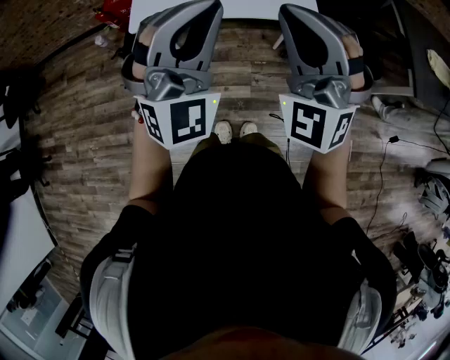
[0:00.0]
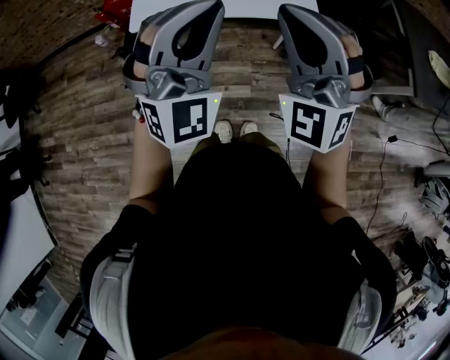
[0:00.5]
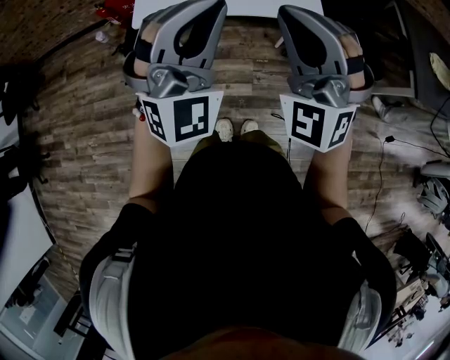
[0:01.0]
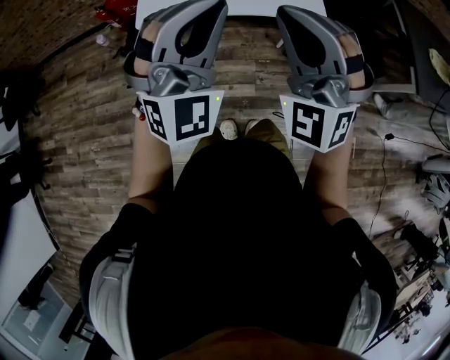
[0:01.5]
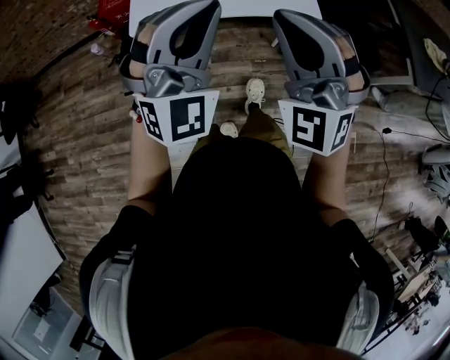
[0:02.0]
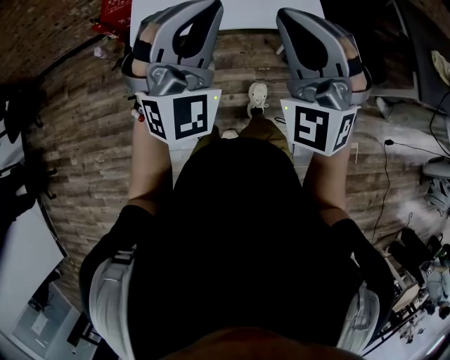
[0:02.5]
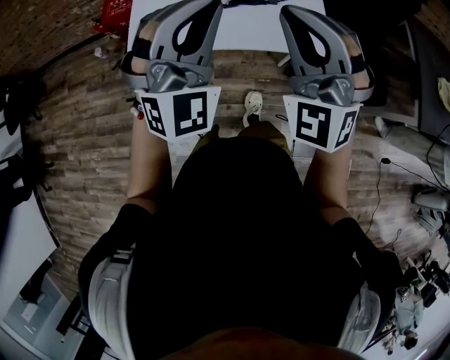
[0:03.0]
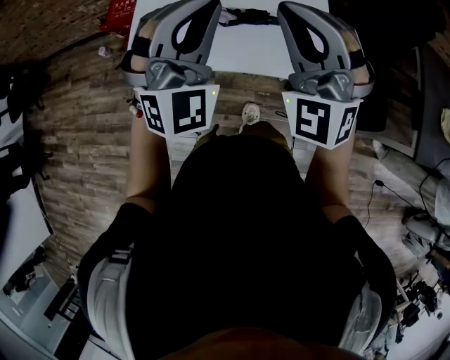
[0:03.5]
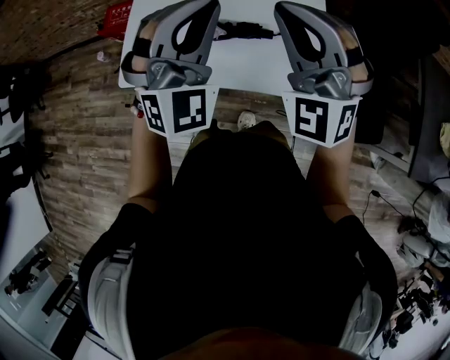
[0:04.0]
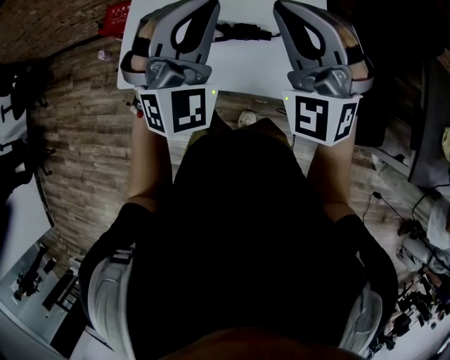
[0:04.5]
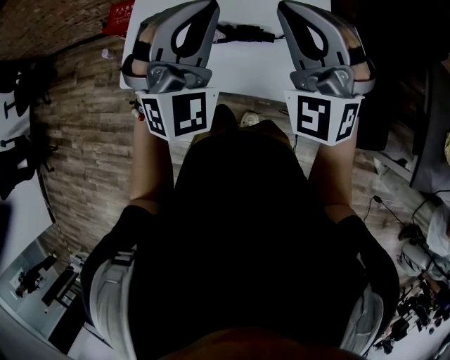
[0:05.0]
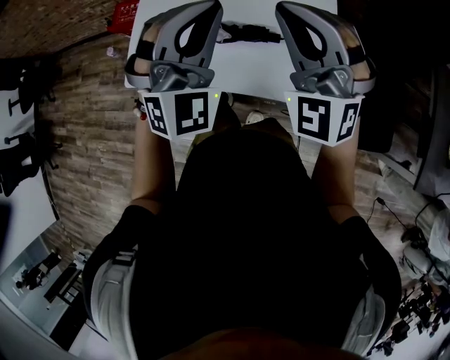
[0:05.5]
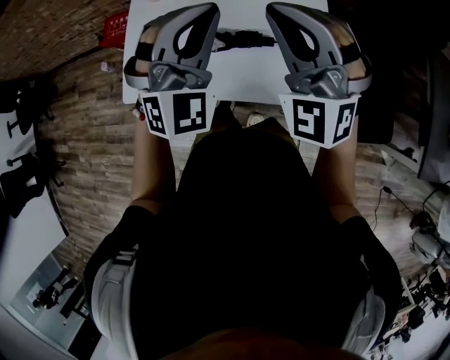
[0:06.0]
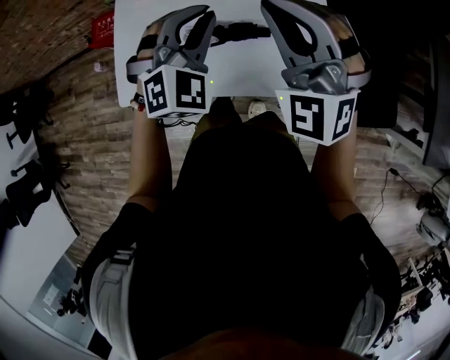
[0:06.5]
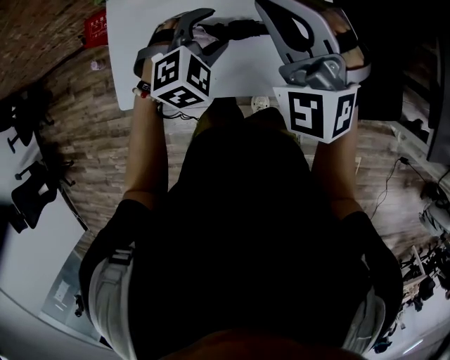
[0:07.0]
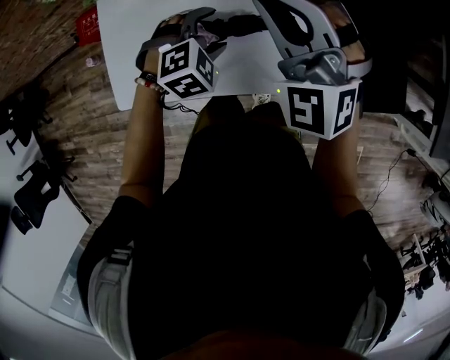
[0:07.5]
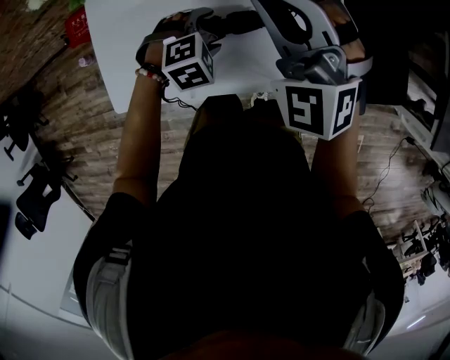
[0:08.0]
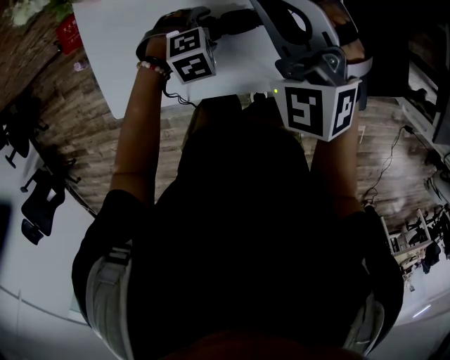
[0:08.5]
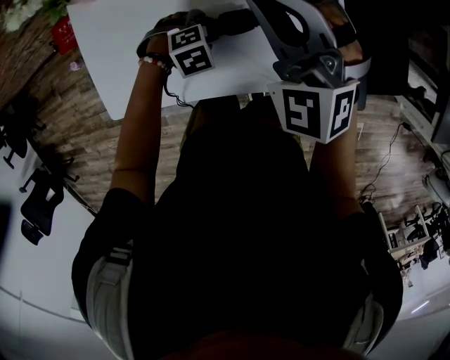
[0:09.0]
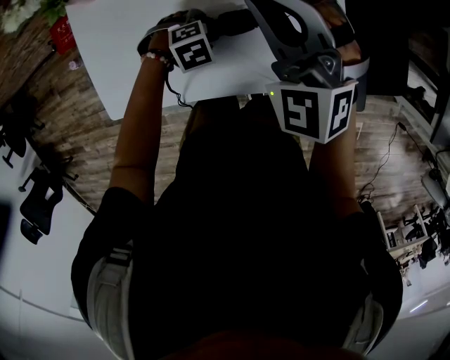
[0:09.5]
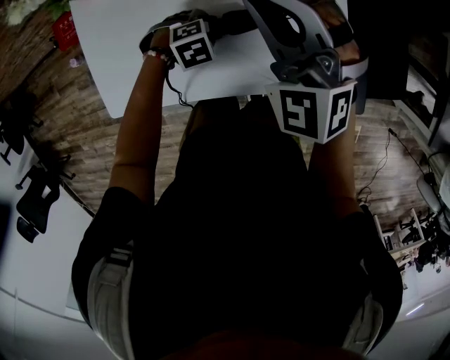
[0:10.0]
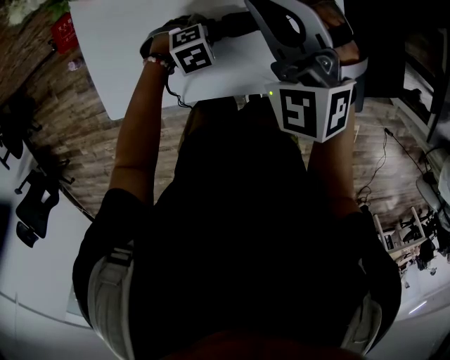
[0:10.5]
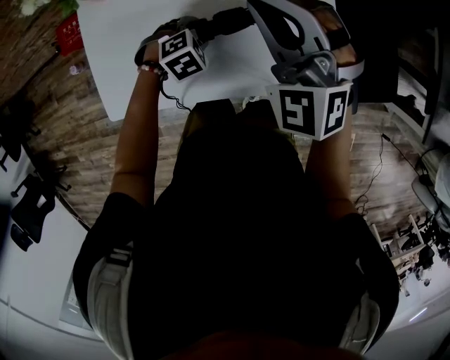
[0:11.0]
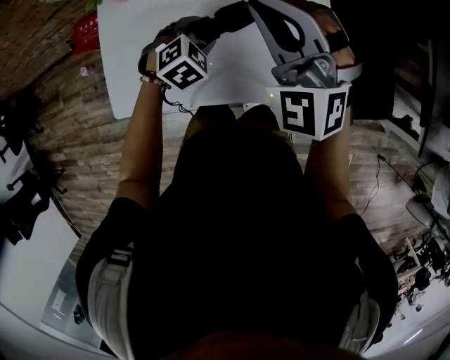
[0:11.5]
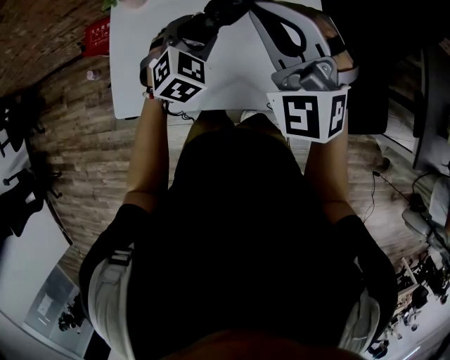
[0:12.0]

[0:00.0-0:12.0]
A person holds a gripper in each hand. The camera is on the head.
0:00.0 to 0:02.0: The right gripper ends up about 5 cm from where it was.
0:02.0 to 0:04.0: The two grippers go roughly 35 cm forward.
0:04.0 to 0:06.0: The left gripper changes place by some 5 cm.
0:06.0 to 0:08.0: The left gripper is displaced downward by approximately 30 cm, tips its fingers downward by approximately 60 degrees, and opens, while the right gripper moves downward and forward, approximately 15 cm.
0:08.0 to 0:10.0: The left gripper shifts approximately 10 cm downward.
0:10.0 to 0:12.0: The left gripper travels upward by roughly 25 cm, and tips its fingers upward by approximately 40 degrees. Meanwhile the right gripper goes approximately 10 cm upward.

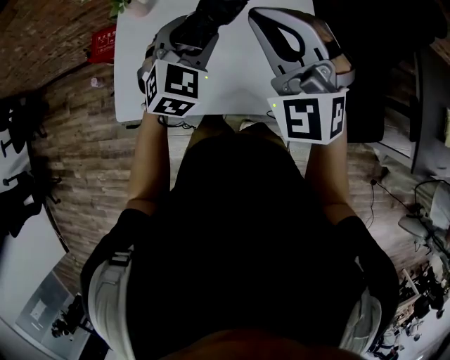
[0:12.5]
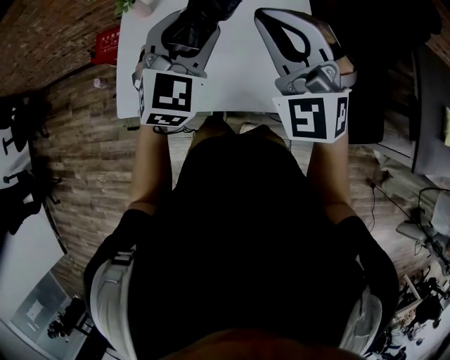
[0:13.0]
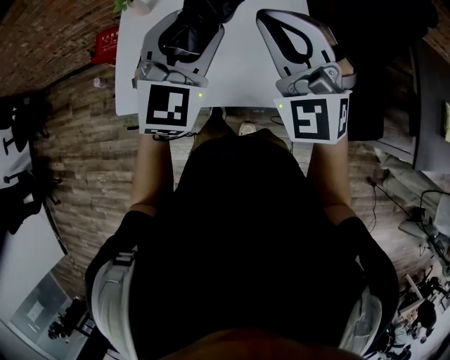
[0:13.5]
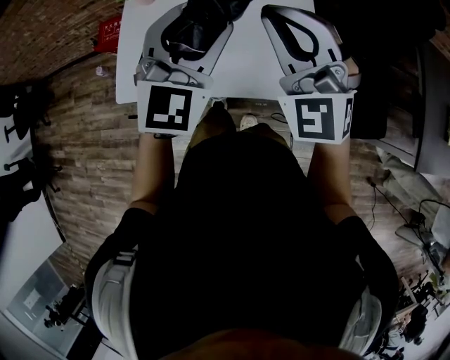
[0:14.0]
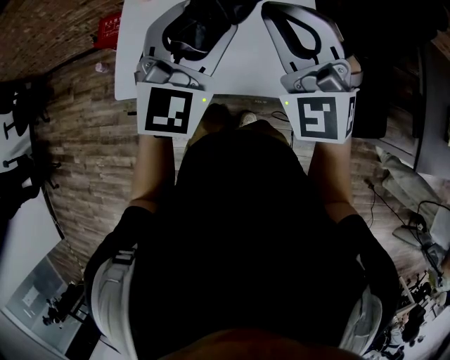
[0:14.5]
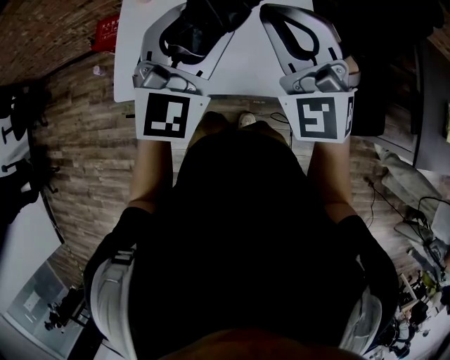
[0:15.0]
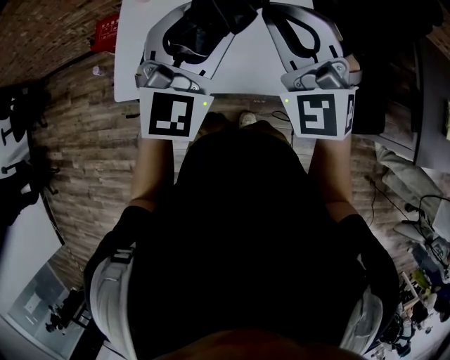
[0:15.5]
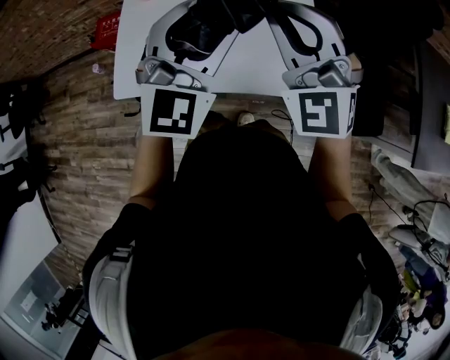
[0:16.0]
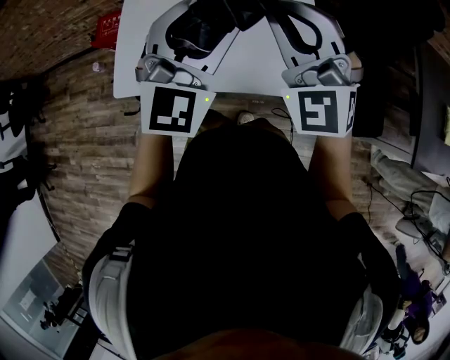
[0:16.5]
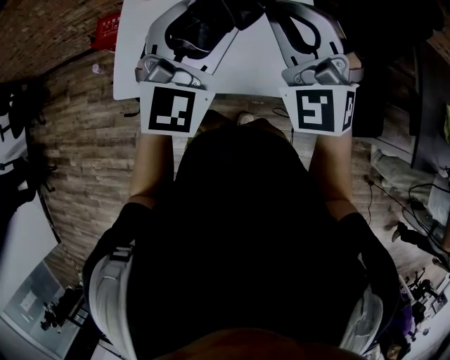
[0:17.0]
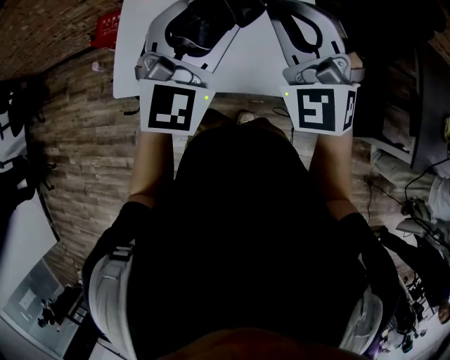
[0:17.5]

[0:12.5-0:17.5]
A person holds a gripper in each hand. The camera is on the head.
0:12.5 to 0:15.0: The left gripper heads upward and backward, covering approximately 15 cm, and changes its angle by some 20 degrees. Meanwhile the right gripper shifts about 5 cm backward.
0:15.0 to 0:17.5: The grippers make only small movements.

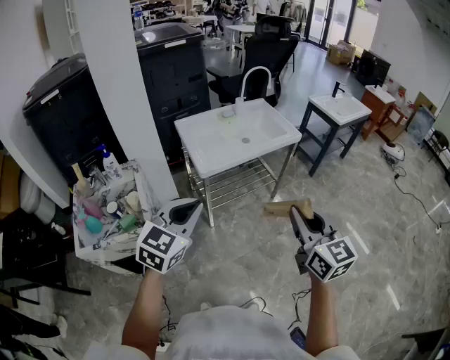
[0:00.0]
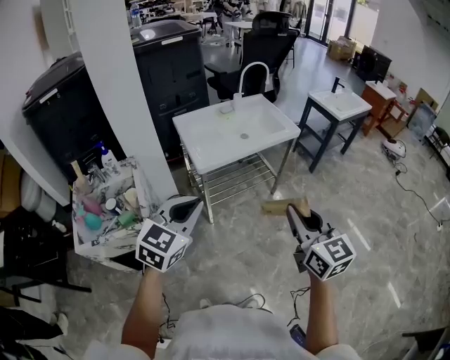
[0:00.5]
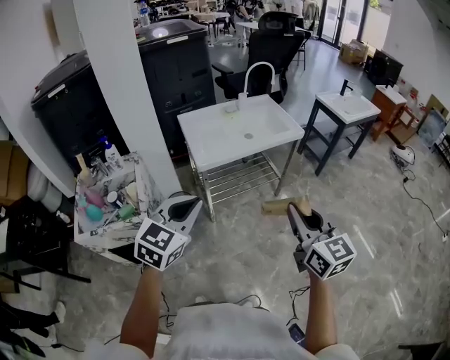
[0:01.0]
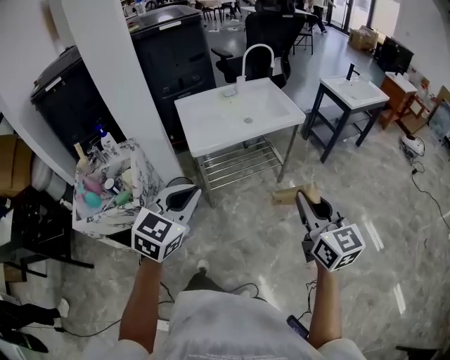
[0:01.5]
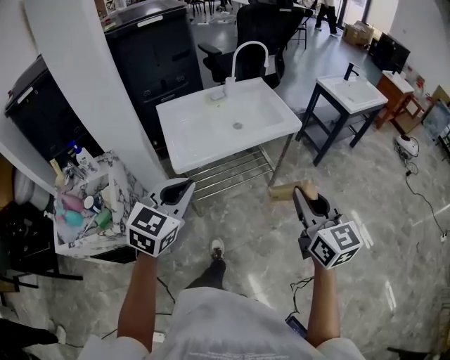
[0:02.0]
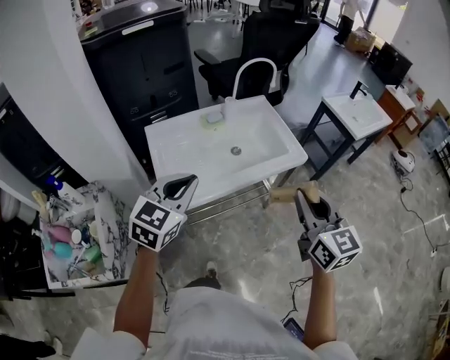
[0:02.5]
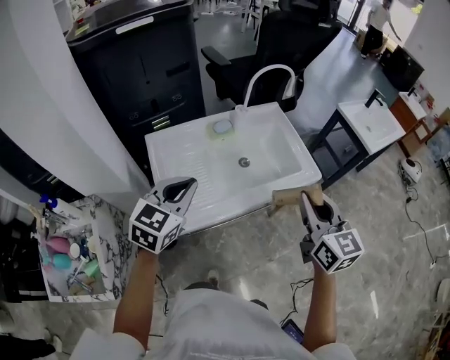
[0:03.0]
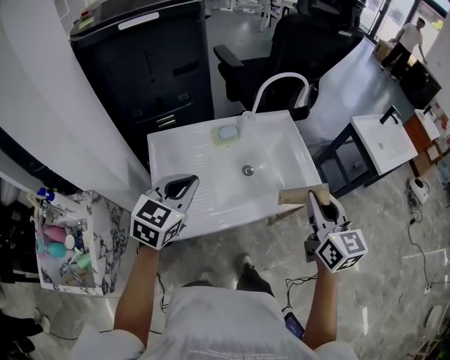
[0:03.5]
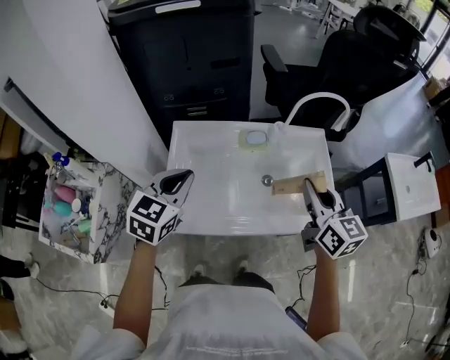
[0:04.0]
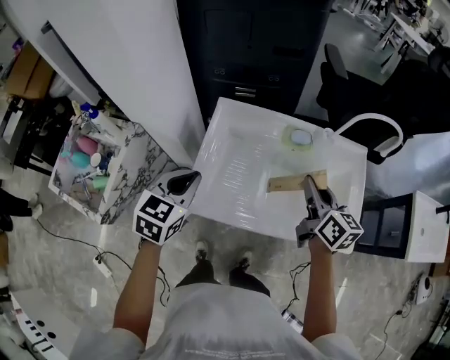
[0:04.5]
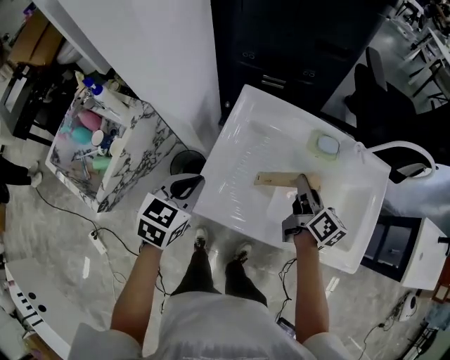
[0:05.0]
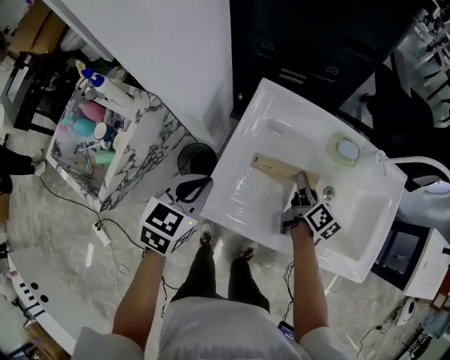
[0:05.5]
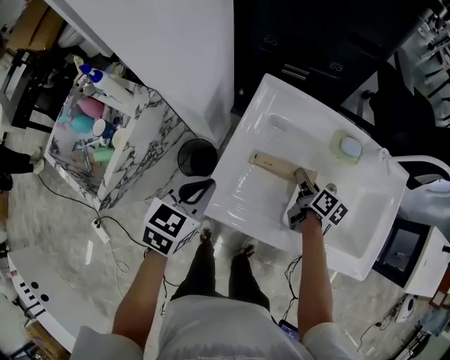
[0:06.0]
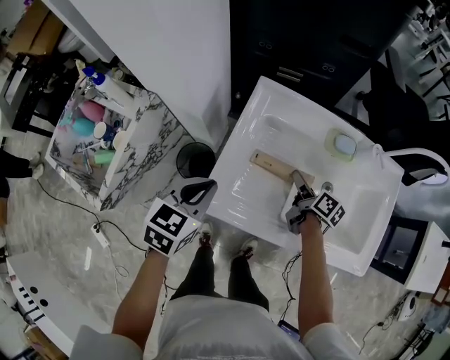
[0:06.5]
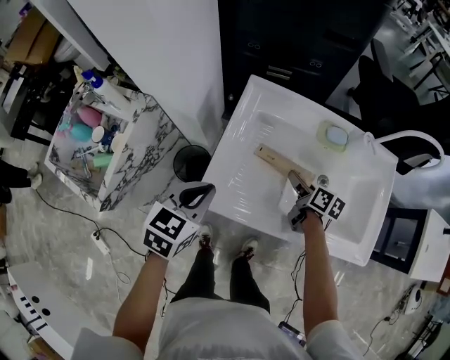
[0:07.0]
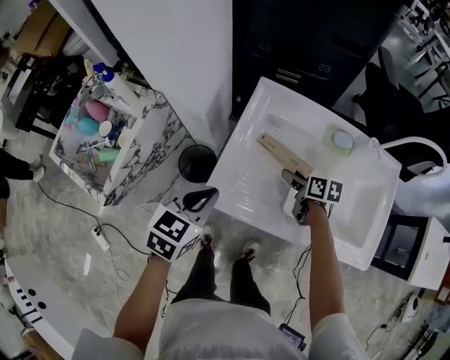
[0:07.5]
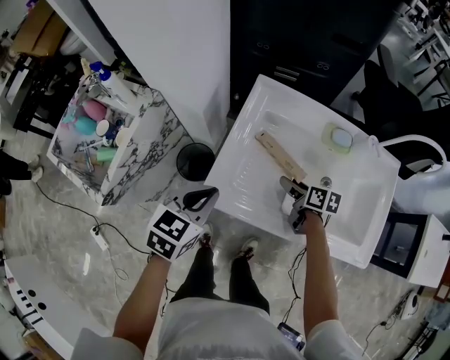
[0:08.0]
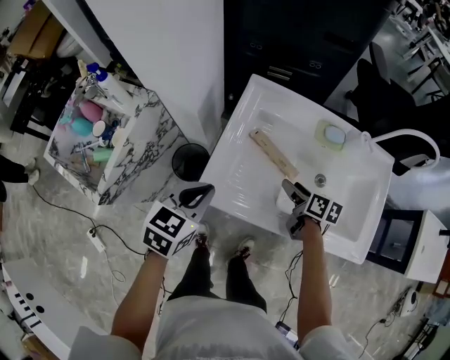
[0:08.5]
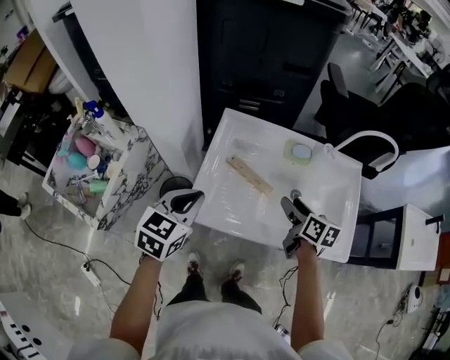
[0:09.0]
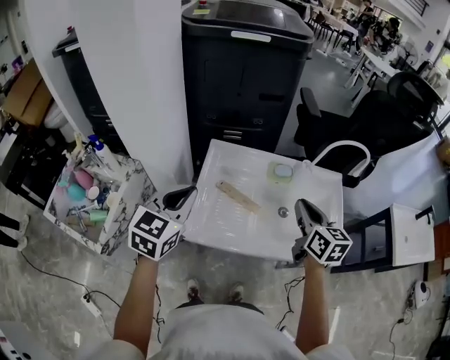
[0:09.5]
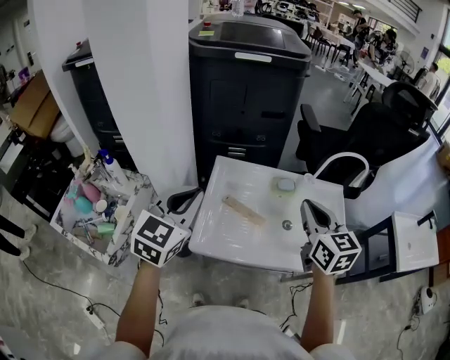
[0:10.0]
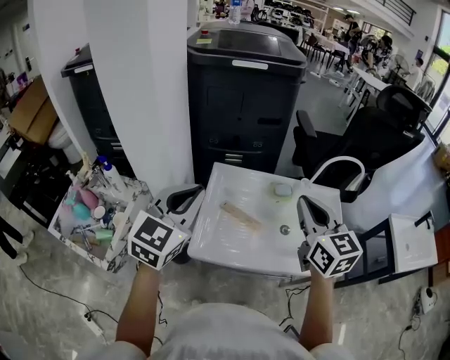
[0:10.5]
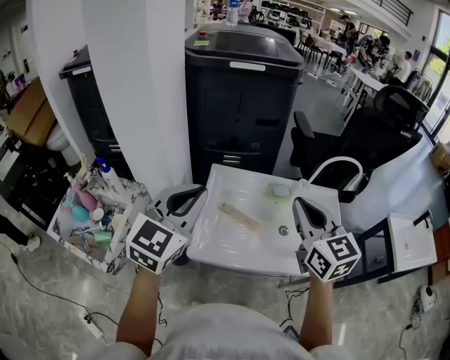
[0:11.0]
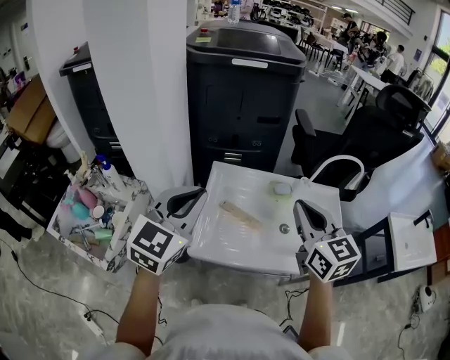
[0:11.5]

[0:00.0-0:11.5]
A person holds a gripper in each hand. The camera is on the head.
0:00.0 to 0:02.0: The grippers both shift forward and to the right by approximately 20 cm.
0:02.0 to 0:04.0: The two grippers travel together, forward, approximately 50 cm. The left gripper rotates approximately 30 degrees; the right gripper swivels some 20 degrees.
0:04.0 to 0:06.0: The right gripper moves downward, to the left and forward, about 40 cm, and changes its angle by roughly 50 degrees. Meanwhile the left gripper heads downward and to the left, covering about 20 cm, and swivels some 30 degrees.
0:06.0 to 0:07.5: The left gripper goes about 5 cm backward, while the right gripper changes its angle by about 20 degrees, and opens up.
0:07.5 to 0:09.5: The left gripper shifts some 15 cm upward, and turns by some 20 degrees. The right gripper is displaced upward by some 30 cm, turns by some 40 degrees, and closes.
0:09.5 to 0:11.5: The right gripper moves upward and to the left, roughly 15 cm, and changes its angle by about 20 degrees, while the left gripper is displaced upward by roughly 10 cm.
